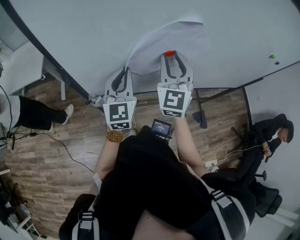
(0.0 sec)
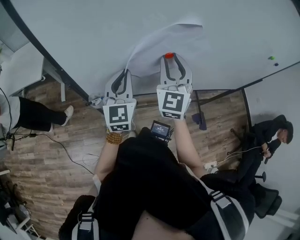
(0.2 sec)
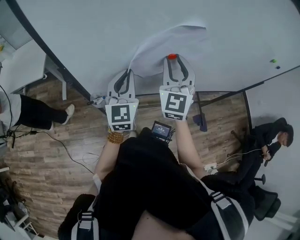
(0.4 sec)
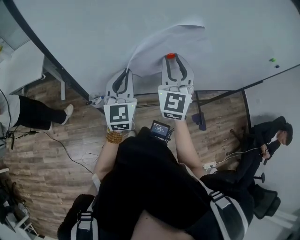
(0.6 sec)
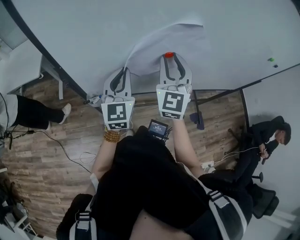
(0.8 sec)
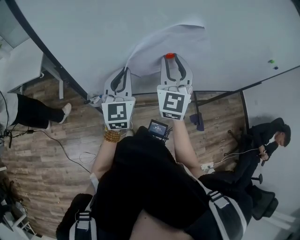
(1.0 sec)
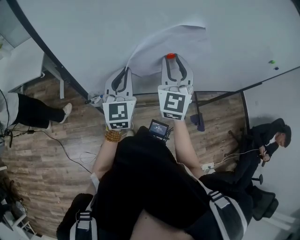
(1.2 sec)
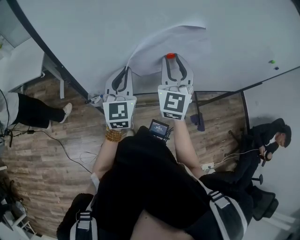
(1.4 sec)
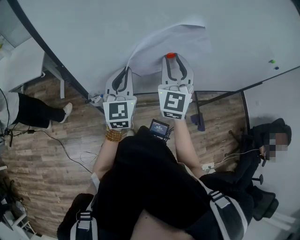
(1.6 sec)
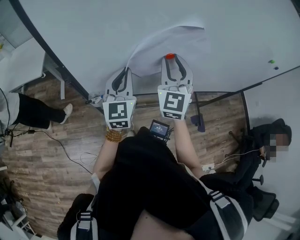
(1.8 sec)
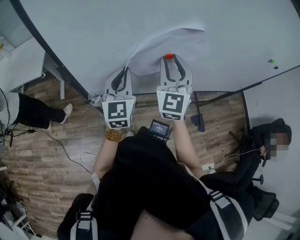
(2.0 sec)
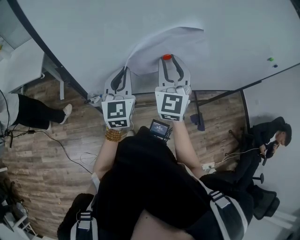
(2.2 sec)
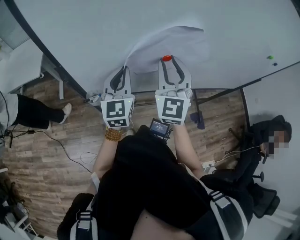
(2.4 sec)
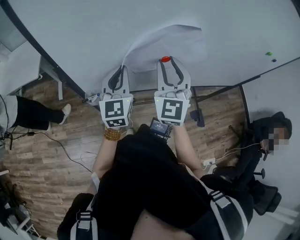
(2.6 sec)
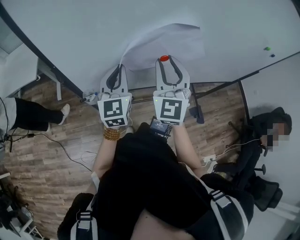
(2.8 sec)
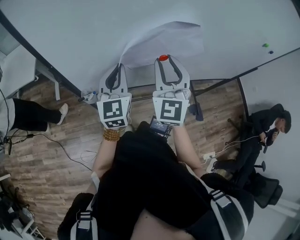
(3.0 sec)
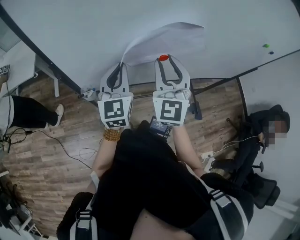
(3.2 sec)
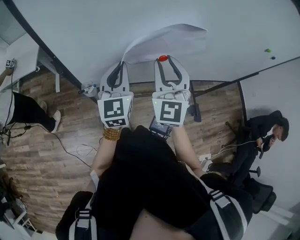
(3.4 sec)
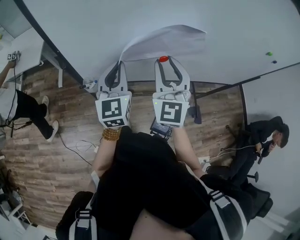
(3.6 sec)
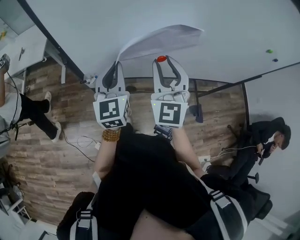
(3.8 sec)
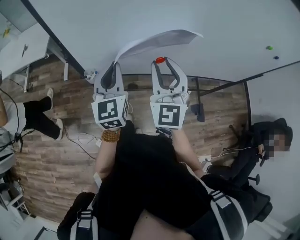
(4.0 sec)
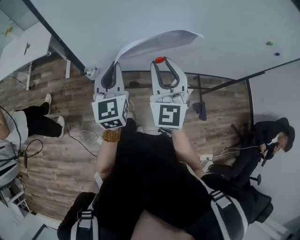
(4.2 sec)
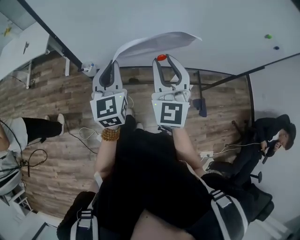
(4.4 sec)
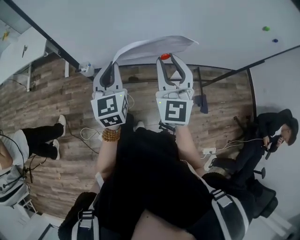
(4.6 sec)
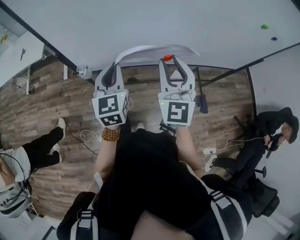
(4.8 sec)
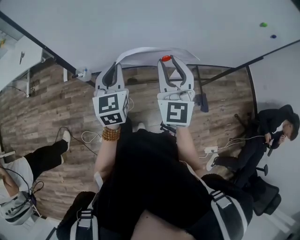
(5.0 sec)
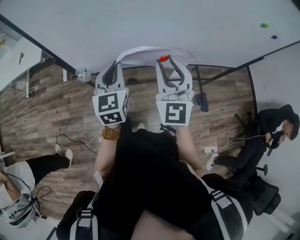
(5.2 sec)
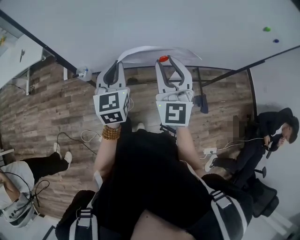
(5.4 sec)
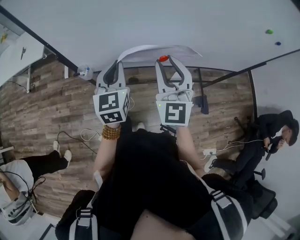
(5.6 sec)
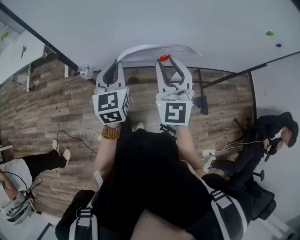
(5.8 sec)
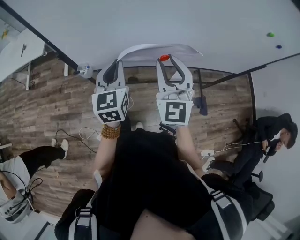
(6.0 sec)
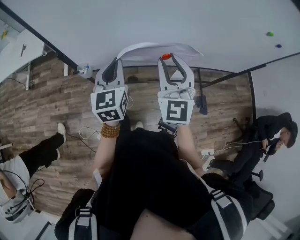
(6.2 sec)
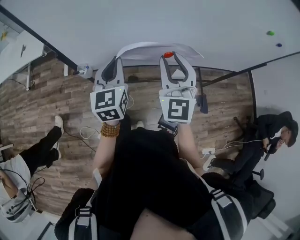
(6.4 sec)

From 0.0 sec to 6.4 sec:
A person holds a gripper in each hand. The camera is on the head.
From 0.0 sec to 1.6 sec: Neither gripper changes place.
From 1.6 sec to 3.2 sec: The right gripper heads backward, covering some 5 cm.
From 3.2 sec to 4.8 sec: The right gripper travels backward and to the right by about 15 cm, while the left gripper moves backward, some 10 cm.
From 4.8 sec to 6.4 sec: There are only small adjustments of the grippers.

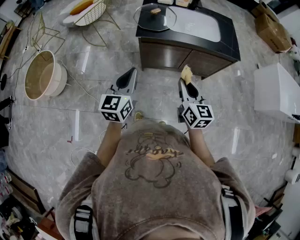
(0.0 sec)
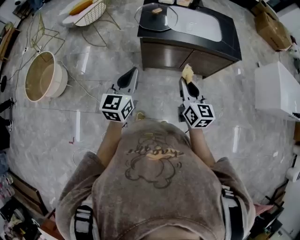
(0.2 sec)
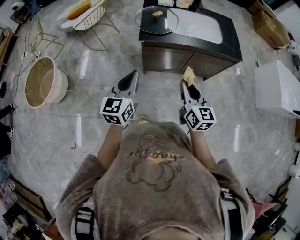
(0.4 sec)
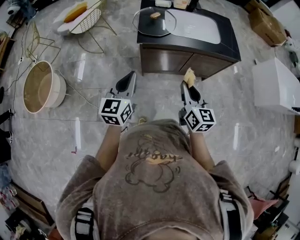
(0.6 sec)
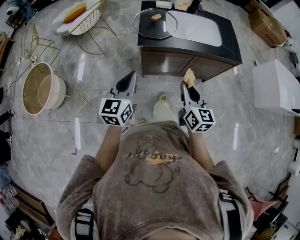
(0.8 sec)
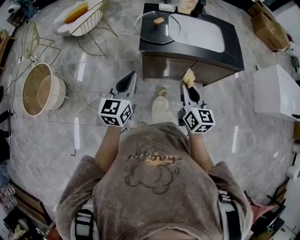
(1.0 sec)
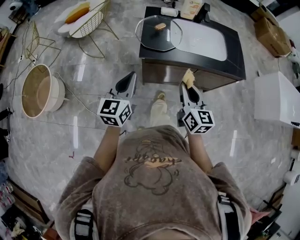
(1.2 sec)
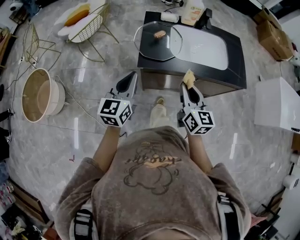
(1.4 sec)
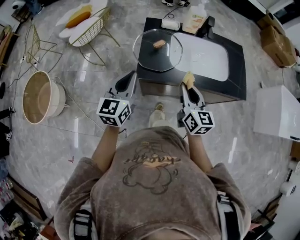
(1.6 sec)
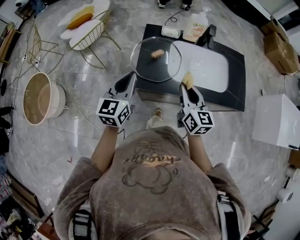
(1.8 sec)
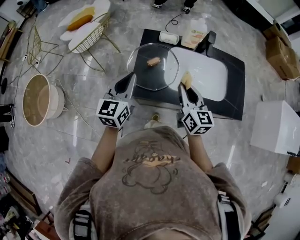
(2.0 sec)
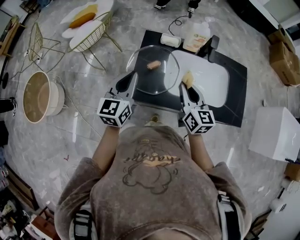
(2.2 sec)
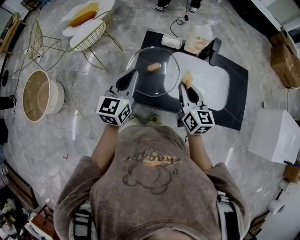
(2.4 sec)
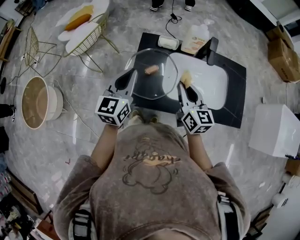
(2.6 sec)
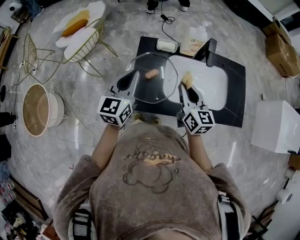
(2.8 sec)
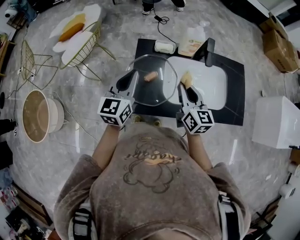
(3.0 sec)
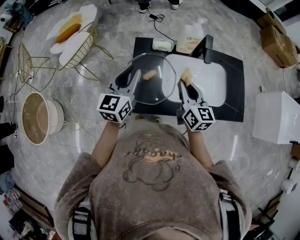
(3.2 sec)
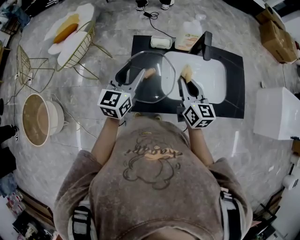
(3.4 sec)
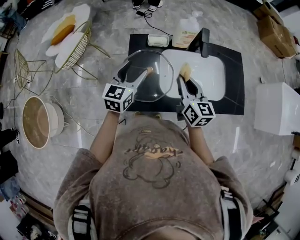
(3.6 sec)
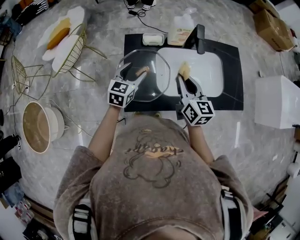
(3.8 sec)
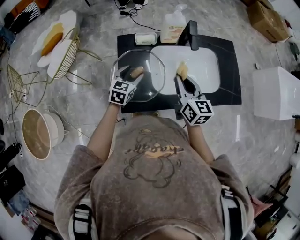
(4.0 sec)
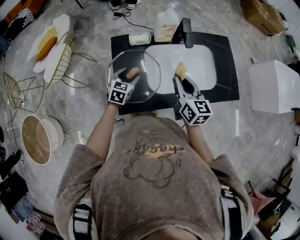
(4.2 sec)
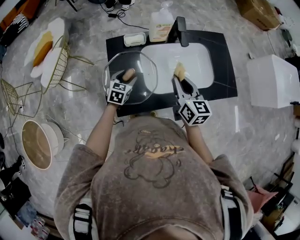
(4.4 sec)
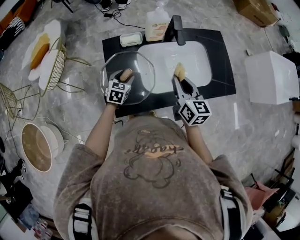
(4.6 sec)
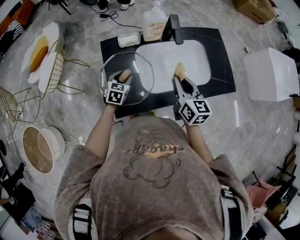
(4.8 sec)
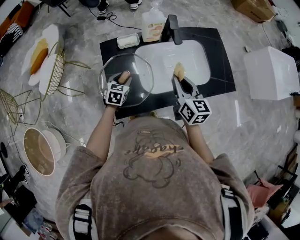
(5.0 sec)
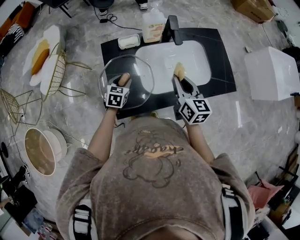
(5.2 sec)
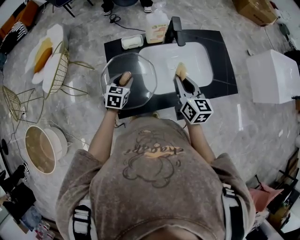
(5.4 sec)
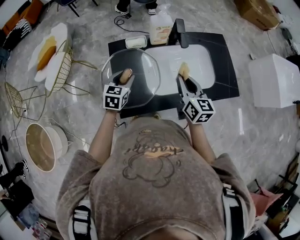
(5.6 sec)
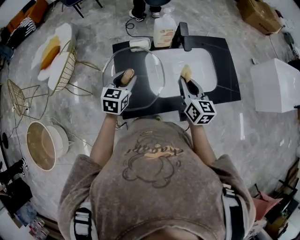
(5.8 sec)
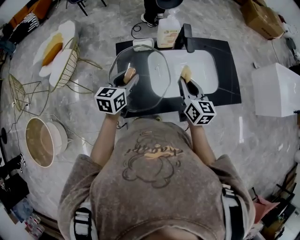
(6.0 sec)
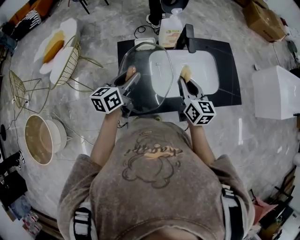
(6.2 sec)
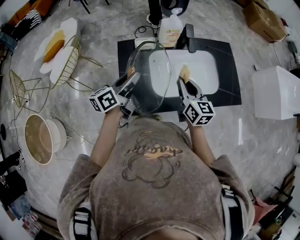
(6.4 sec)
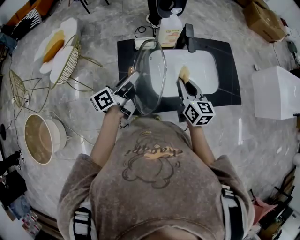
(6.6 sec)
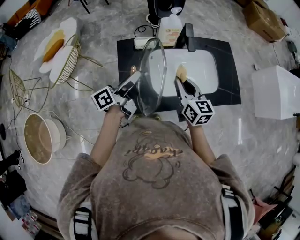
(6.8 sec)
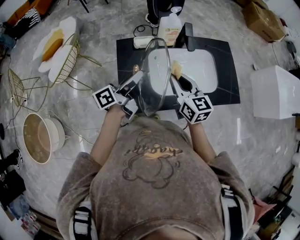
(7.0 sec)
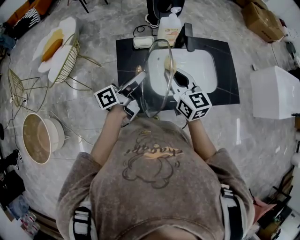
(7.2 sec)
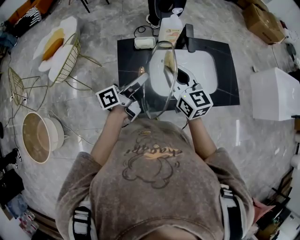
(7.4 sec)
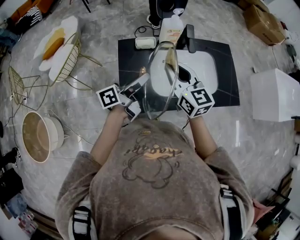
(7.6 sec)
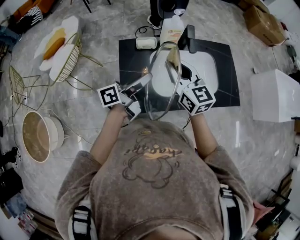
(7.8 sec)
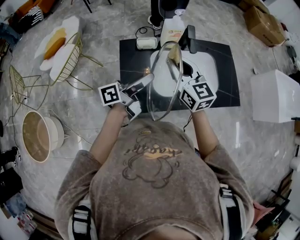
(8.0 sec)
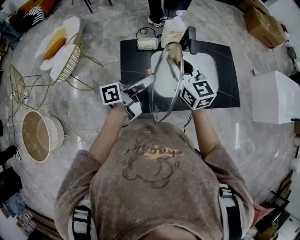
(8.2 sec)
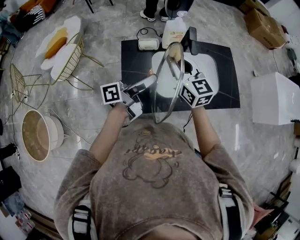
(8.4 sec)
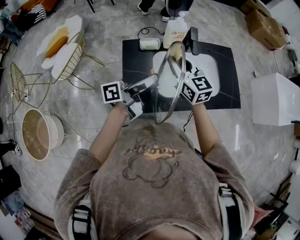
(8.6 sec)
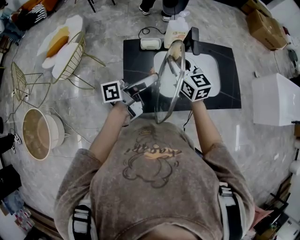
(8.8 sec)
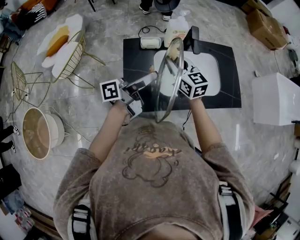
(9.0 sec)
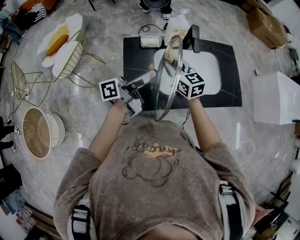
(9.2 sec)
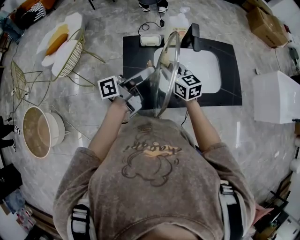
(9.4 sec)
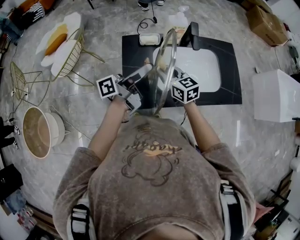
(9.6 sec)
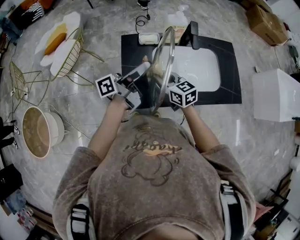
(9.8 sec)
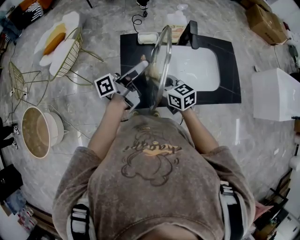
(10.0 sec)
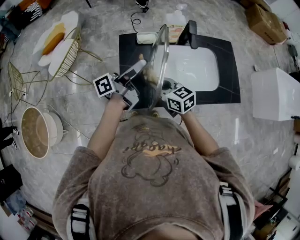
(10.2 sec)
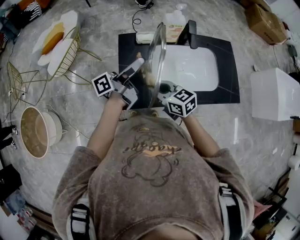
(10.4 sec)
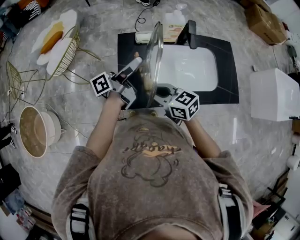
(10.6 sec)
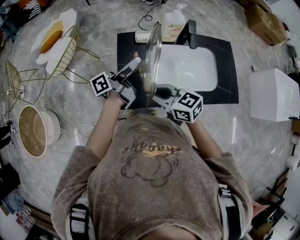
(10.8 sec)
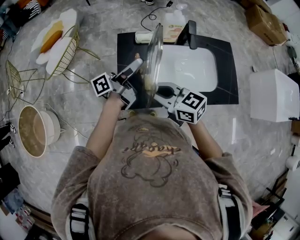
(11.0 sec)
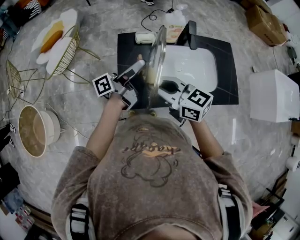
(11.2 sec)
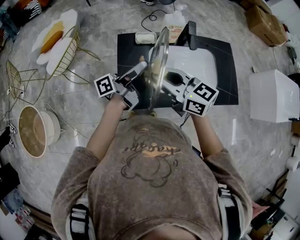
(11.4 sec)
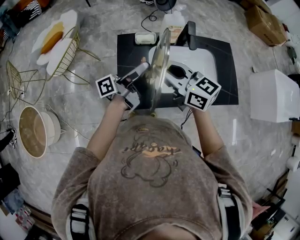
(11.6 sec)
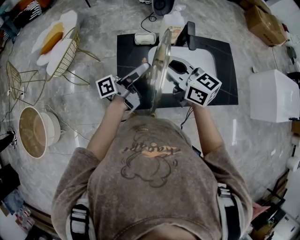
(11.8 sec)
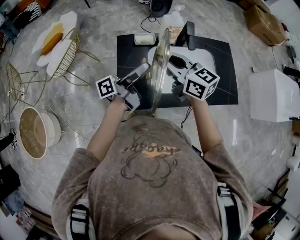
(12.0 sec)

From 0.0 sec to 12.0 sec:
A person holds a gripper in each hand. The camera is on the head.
From 0.0 sec to 1.6 sec: The grippers both shift forward by roughly 30 cm.
From 1.6 sec to 3.0 sec: The grippers both shift forward by some 20 cm.
From 3.0 sec to 4.4 sec: The left gripper heads downward, covering roughly 25 cm, points its fingers roughly 30 degrees further downward, and opens. Meanwhile the right gripper goes approximately 5 cm to the right.
From 4.4 sec to 6.0 sec: The left gripper goes approximately 15 cm upward, and rotates roughly 20 degrees.
From 6.0 sec to 7.6 sec: The left gripper goes some 5 cm to the right and upward, and points its fingers roughly 30 degrees further upward. Meanwhile the right gripper heads to the left and upward, covering approximately 10 cm, and turns by approximately 20 degrees.
From 7.6 sec to 9.0 sec: The right gripper changes place by approximately 5 cm.
From 9.0 sec to 10.4 sec: The left gripper moves about 5 cm. Meanwhile the right gripper shifts some 15 cm backward and downward, and changes its angle by approximately 30 degrees.
From 10.4 sec to 12.0 sec: The right gripper shifts roughly 15 cm upward and forward.

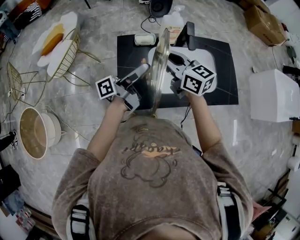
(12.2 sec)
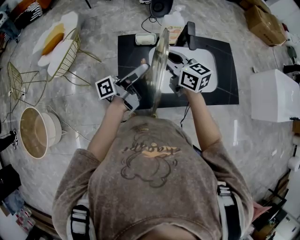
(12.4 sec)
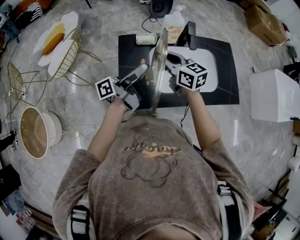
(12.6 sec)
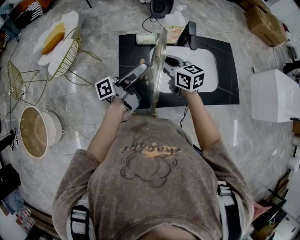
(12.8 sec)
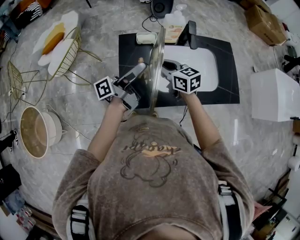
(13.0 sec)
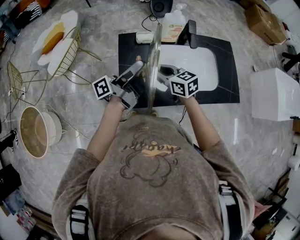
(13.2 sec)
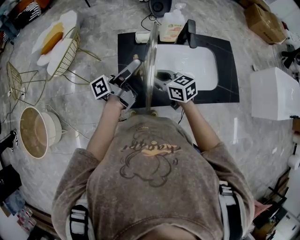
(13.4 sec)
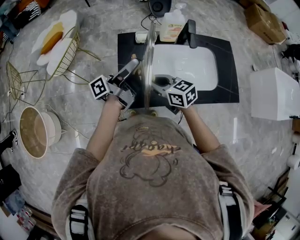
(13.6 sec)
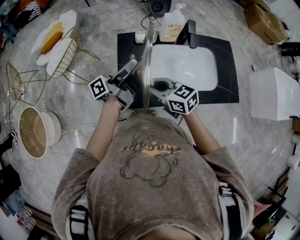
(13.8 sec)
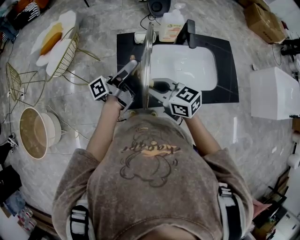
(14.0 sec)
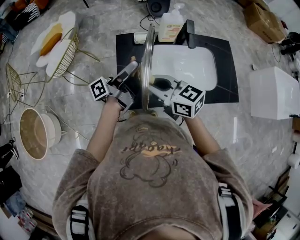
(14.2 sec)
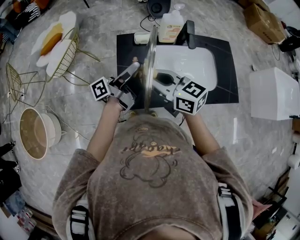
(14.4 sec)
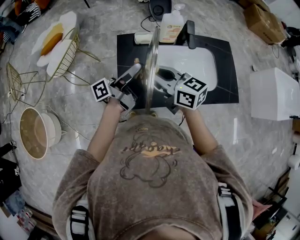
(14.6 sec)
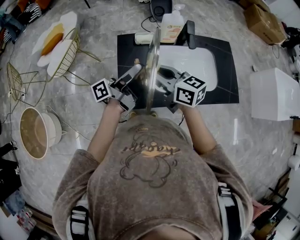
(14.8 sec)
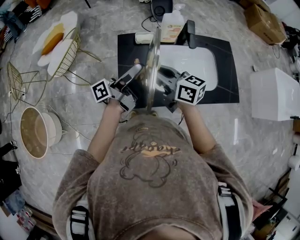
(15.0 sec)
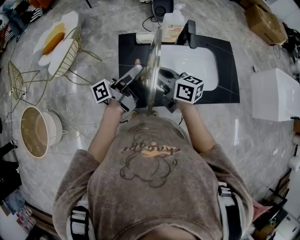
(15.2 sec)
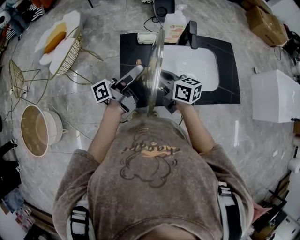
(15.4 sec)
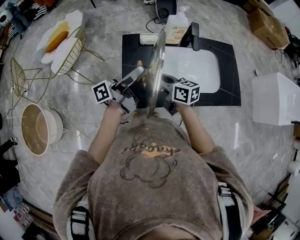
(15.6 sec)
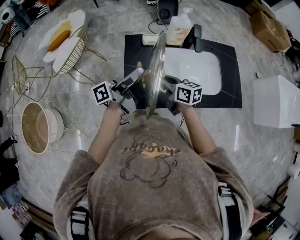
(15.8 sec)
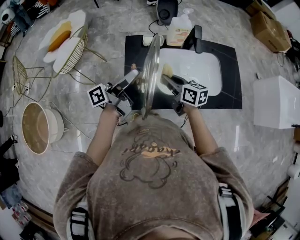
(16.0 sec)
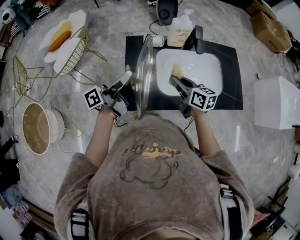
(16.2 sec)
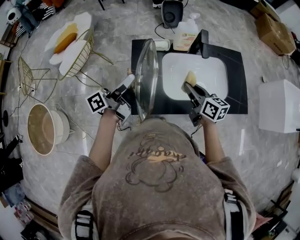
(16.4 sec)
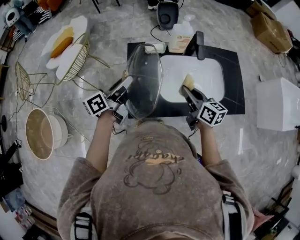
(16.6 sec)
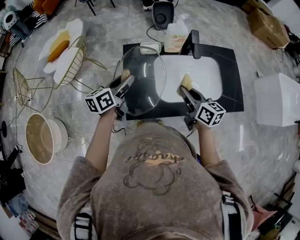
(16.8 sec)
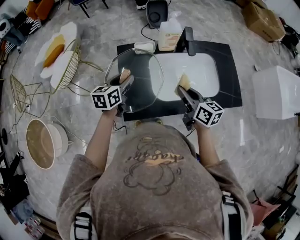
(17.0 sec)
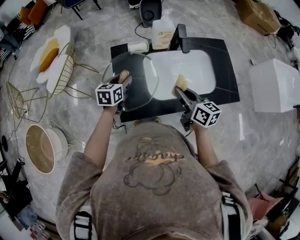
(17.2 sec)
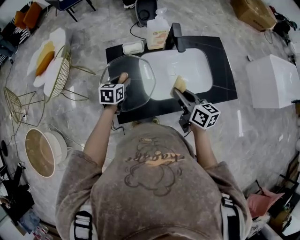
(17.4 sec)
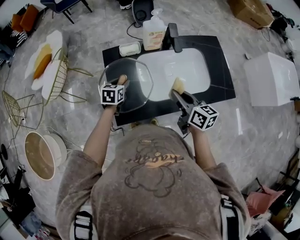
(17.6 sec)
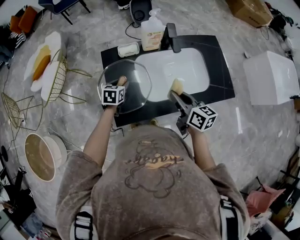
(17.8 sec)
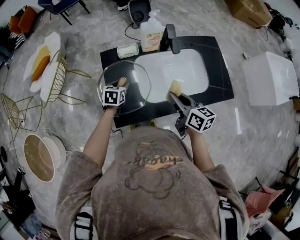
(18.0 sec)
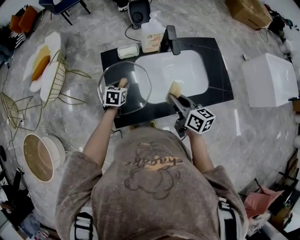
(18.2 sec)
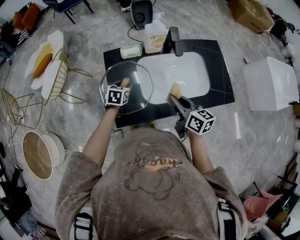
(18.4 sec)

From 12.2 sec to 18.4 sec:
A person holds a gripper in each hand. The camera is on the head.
From 12.2 sec to 13.8 sec: The right gripper moves backward, downward and to the left, some 15 cm, and changes its angle by approximately 20 degrees.
From 13.8 sec to 15.4 sec: The right gripper reaches about 10 cm upward, then returns, and rotates roughly 20 degrees.
From 15.4 sec to 16.8 sec: The left gripper shifts approximately 10 cm downward and to the left, and tilts its fingers about 40 degrees downward. The right gripper goes some 10 cm to the right.
From 16.8 sec to 18.4 sec: The left gripper travels downward by about 15 cm, and tips its fingers downward by about 30 degrees.
